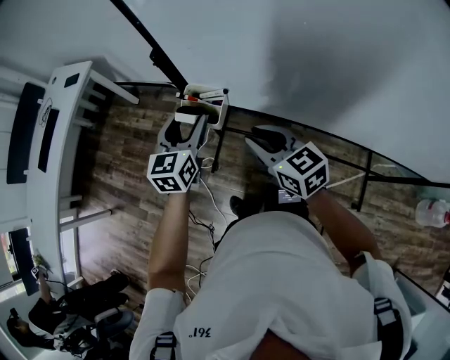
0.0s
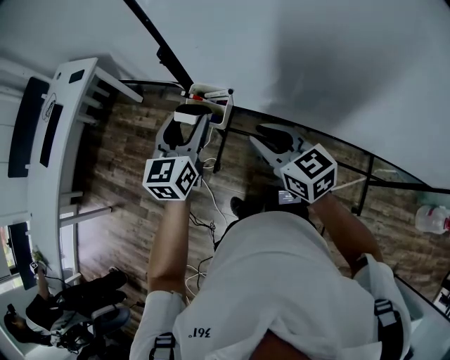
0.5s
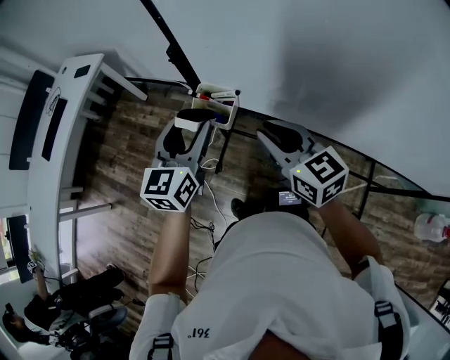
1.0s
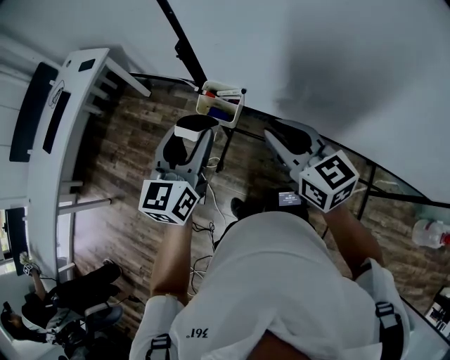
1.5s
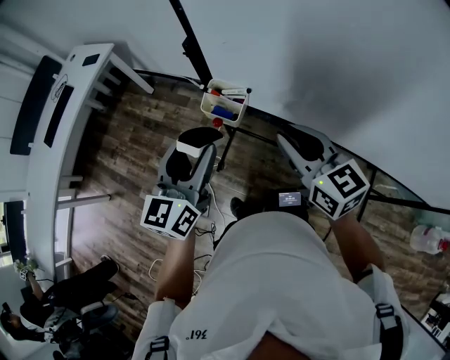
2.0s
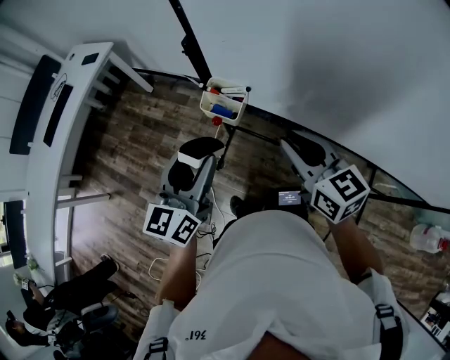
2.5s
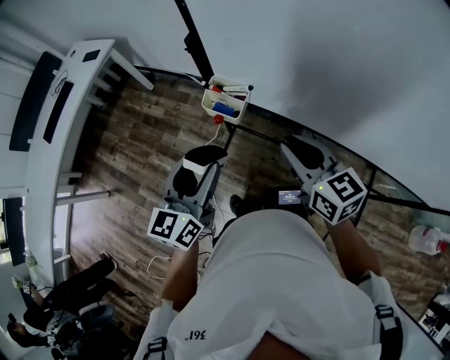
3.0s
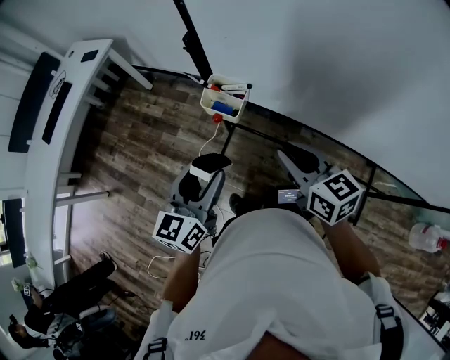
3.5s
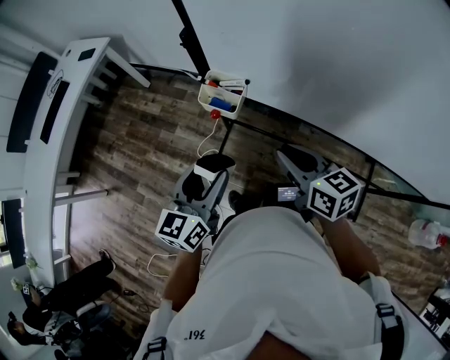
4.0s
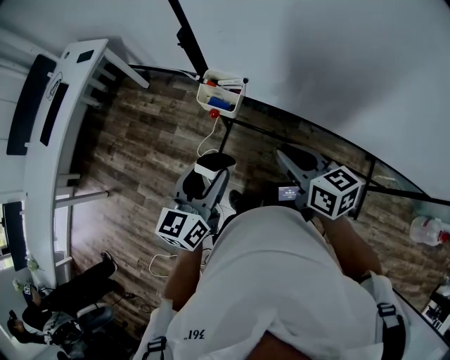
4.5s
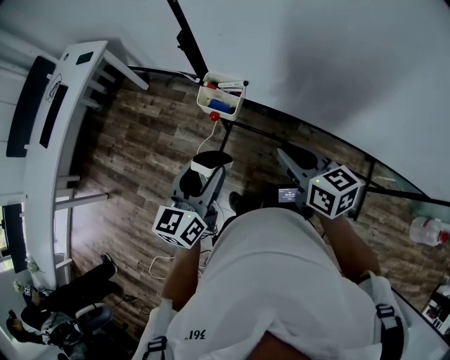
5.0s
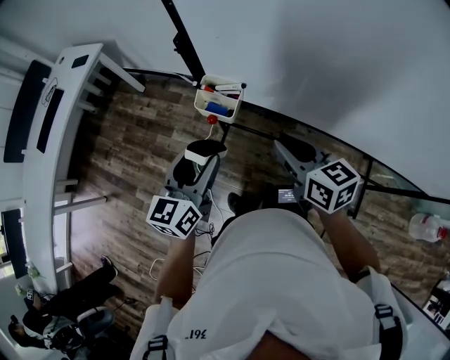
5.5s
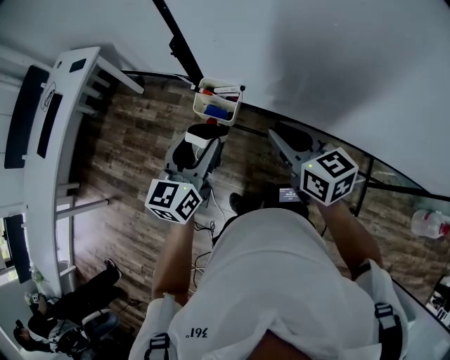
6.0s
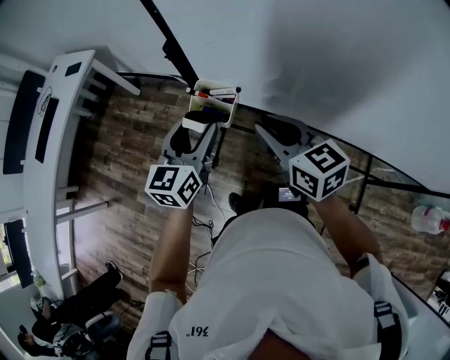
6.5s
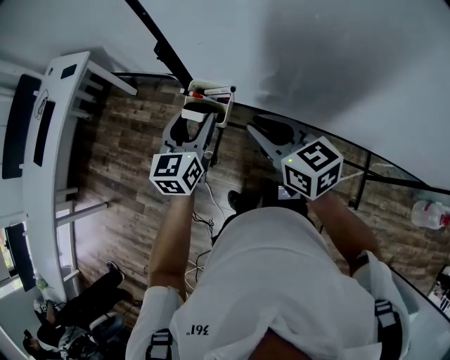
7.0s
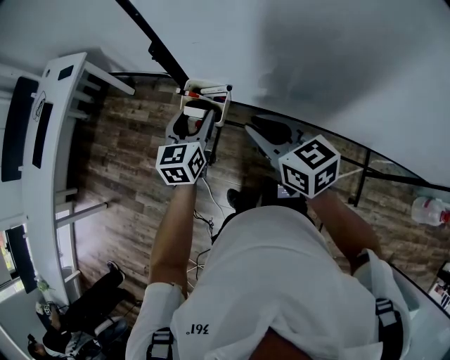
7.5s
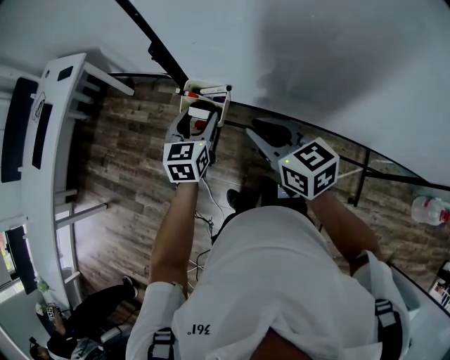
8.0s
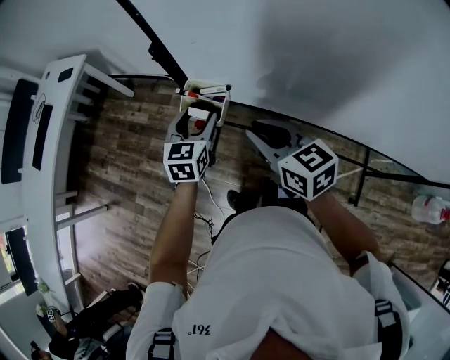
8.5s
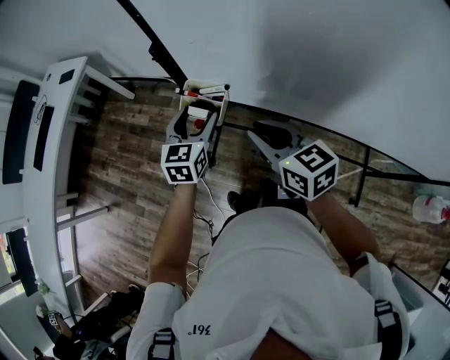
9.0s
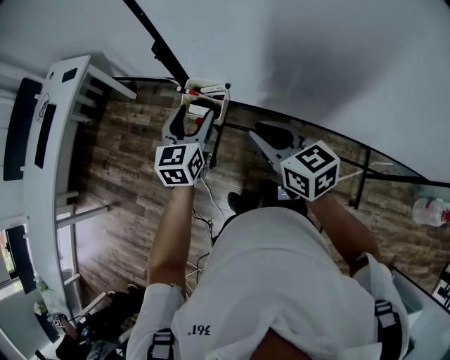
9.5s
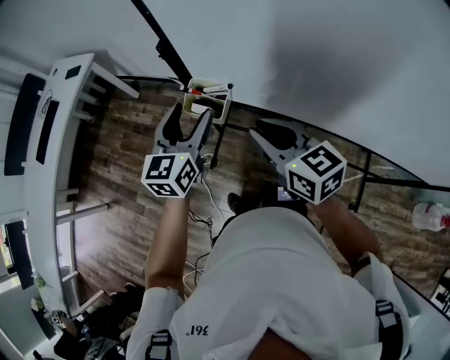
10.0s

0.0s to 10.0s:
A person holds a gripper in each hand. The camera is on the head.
0.0s to 2.0s: The left gripper heads backward and upward, covering approximately 15 cm. Meanwhile the right gripper moves upward, approximately 10 cm.
2.0s to 4.0s: The right gripper heads downward, covering about 5 cm. Meanwhile the left gripper heads downward and backward, covering roughly 10 cm.
4.0s to 6.0s: The left gripper travels forward by approximately 10 cm. The right gripper heads forward, covering about 5 cm.
6.0s to 8.0s: The left gripper is displaced downward and forward by some 15 cm.
8.0s to 10.0s: The left gripper travels upward by roughly 10 cm.

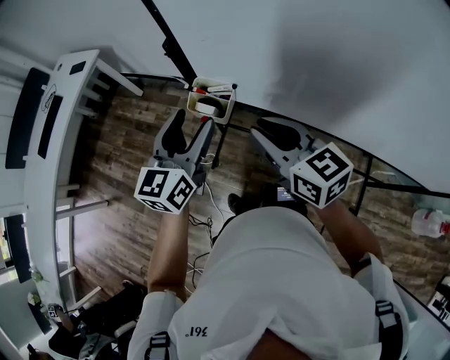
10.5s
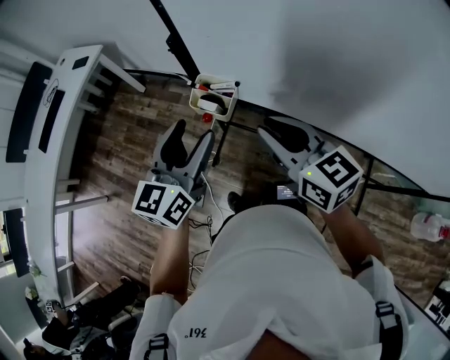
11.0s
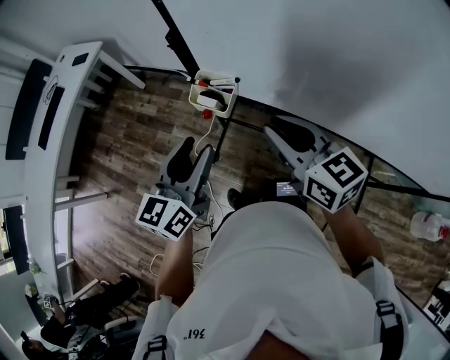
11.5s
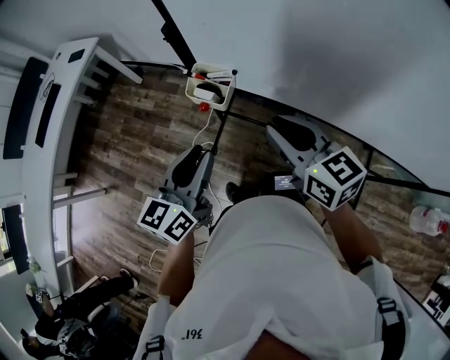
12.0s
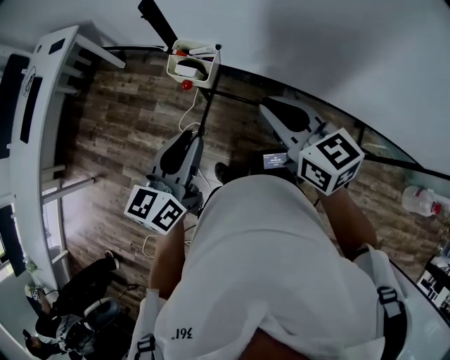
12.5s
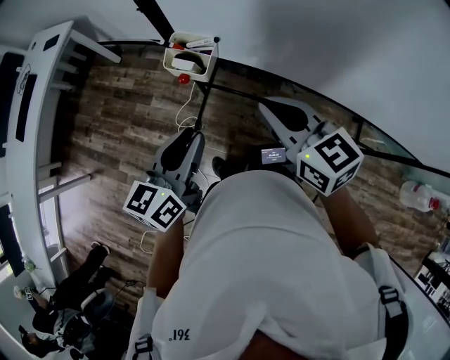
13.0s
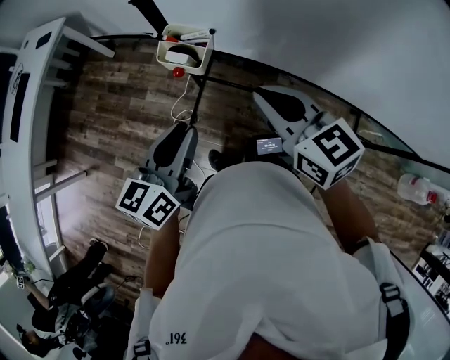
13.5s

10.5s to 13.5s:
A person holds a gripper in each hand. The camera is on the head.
10.5s to 12.0s: The left gripper moves backward, some 10 cm, and closes.
12.0s to 13.5s: The grippers stay close to where they were, moving slightly.

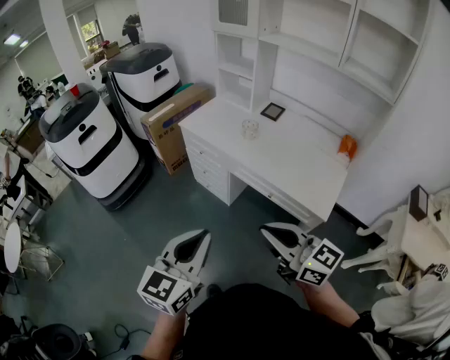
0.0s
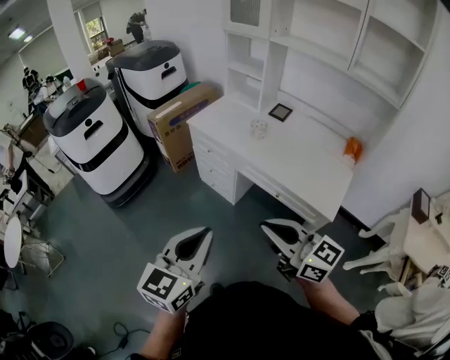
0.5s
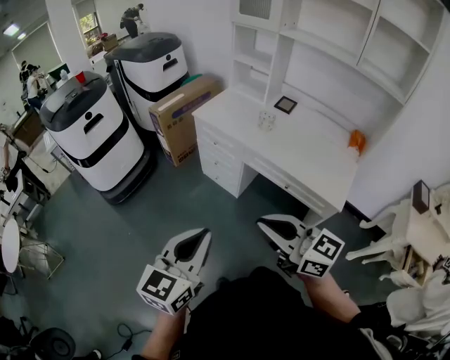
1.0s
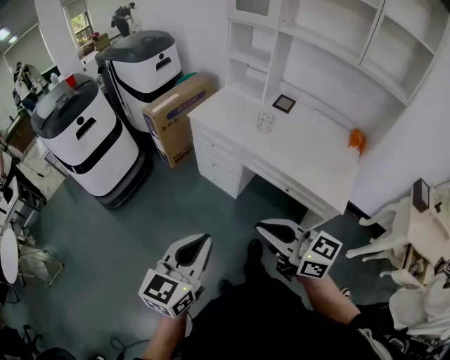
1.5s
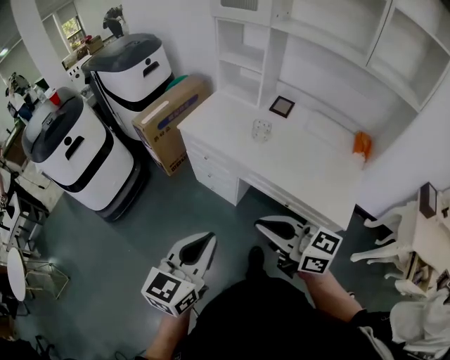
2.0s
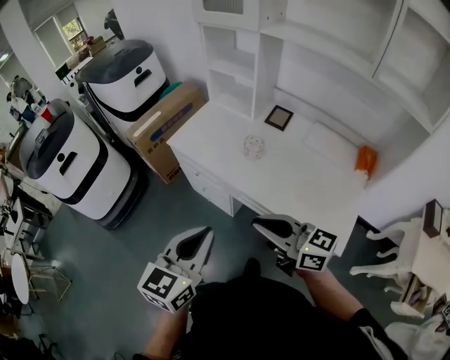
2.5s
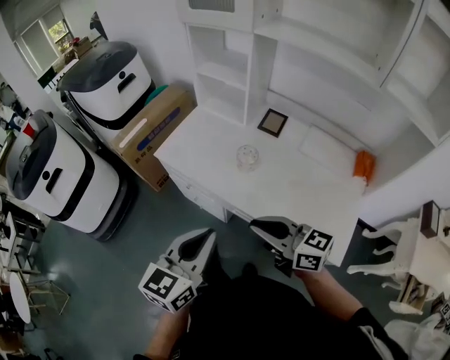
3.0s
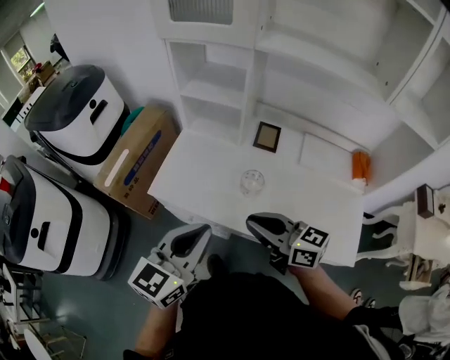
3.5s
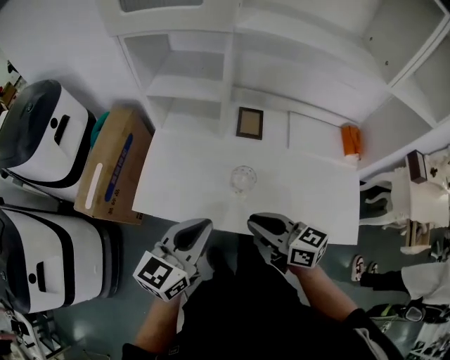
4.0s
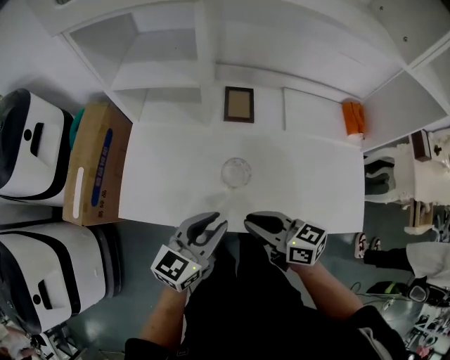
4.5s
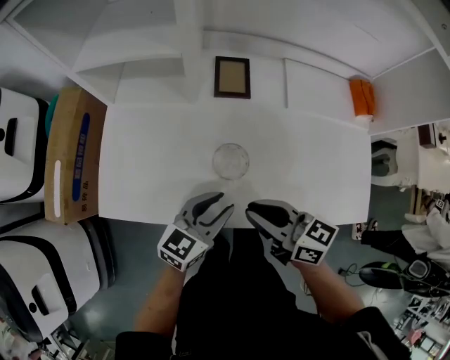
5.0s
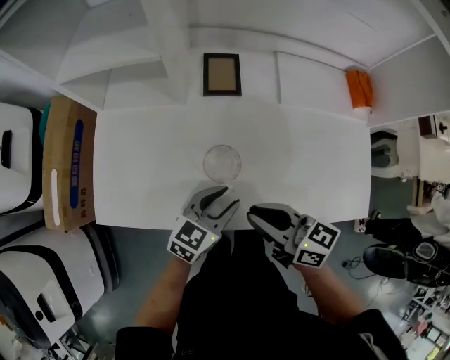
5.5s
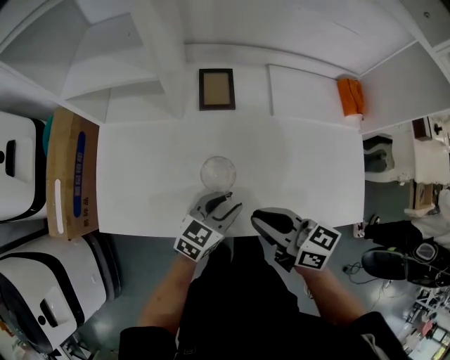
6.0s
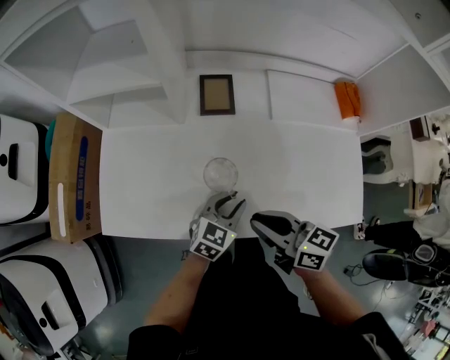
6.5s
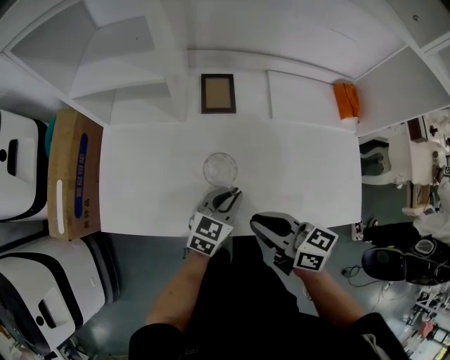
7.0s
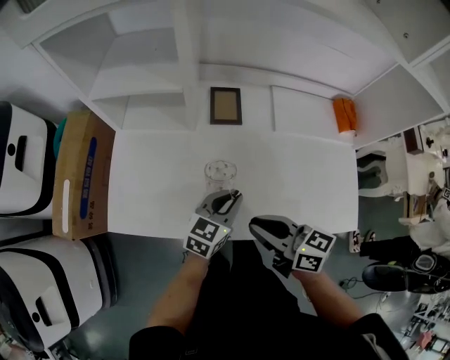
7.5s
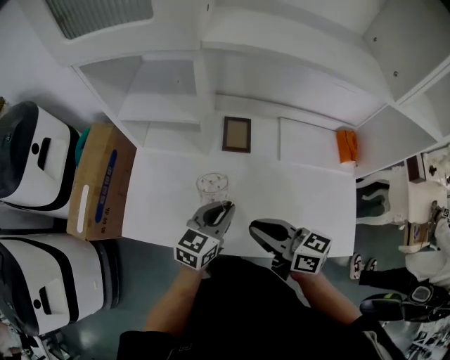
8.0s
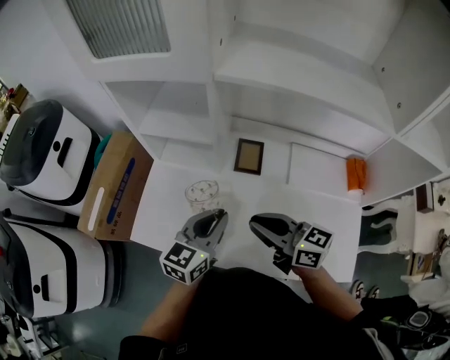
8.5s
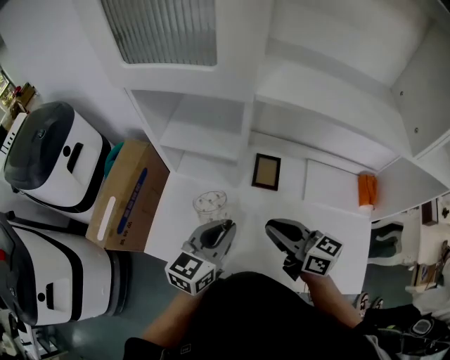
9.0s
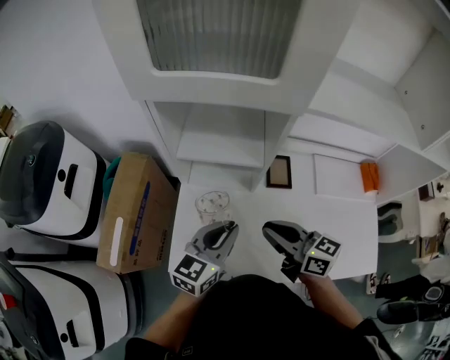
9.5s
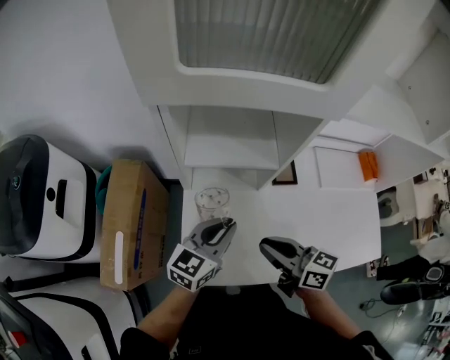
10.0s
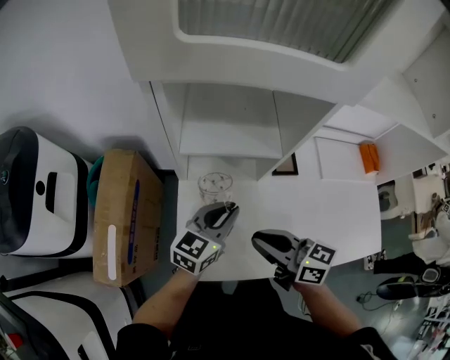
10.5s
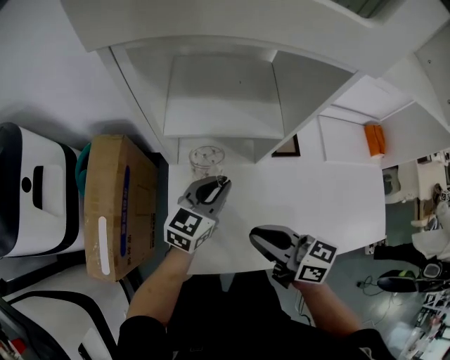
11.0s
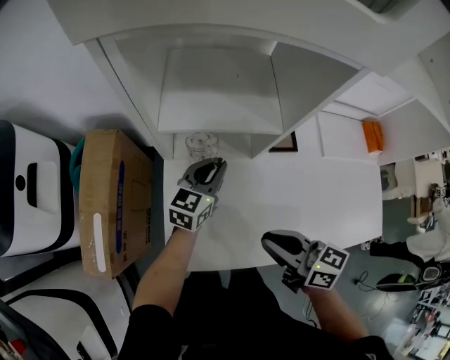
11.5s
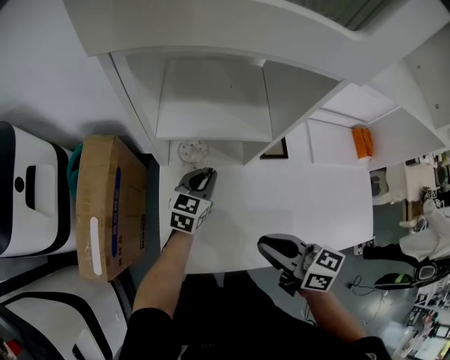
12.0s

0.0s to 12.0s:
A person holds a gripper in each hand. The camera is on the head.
0.0s to 2.0s: The right gripper travels forward and to the left by approximately 15 cm. Meanwhile the left gripper moves forward, some 15 cm.
2.0s to 4.0s: The left gripper changes place by some 40 cm, and turns by roughly 30 degrees. Meanwhile the right gripper ends up roughly 40 cm from where it was, and changes its angle by some 30 degrees.
4.0s to 6.0s: The left gripper shifts roughly 30 cm downward and to the right, changes its angle by approximately 30 degrees, and opens; the right gripper heads downward and to the right, covering about 10 cm.
6.0s to 8.0s: The right gripper shifts about 10 cm upward. Meanwhile the left gripper is displaced upward, forward and to the left by approximately 15 cm, and closes.
8.0s to 10.0s: Both grippers move to the left and forward, about 25 cm.
10.0s to 12.0s: The left gripper goes approximately 20 cm downward and forward.

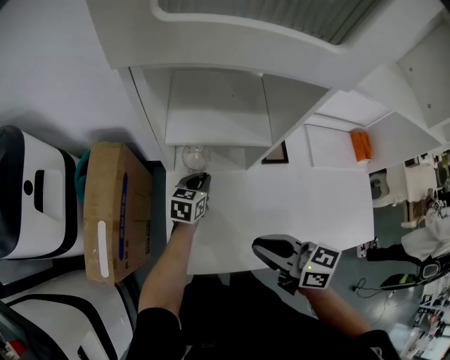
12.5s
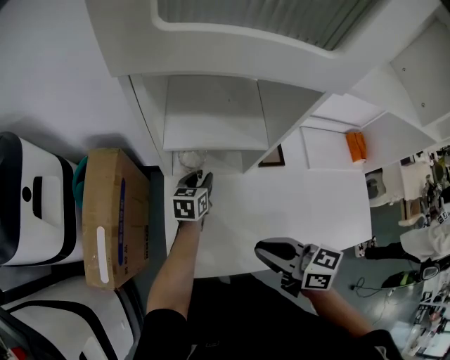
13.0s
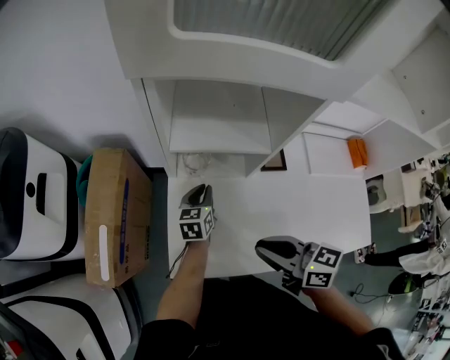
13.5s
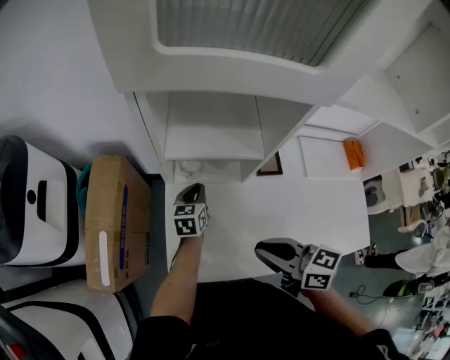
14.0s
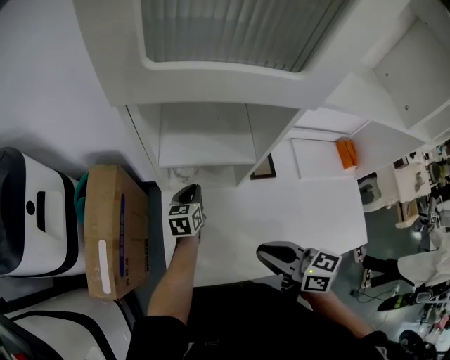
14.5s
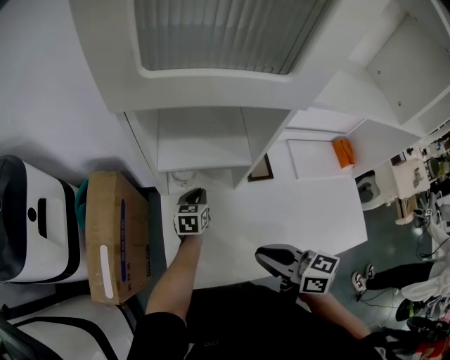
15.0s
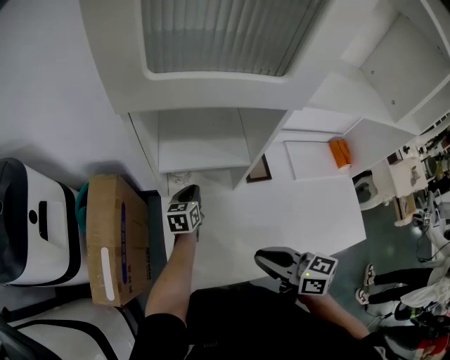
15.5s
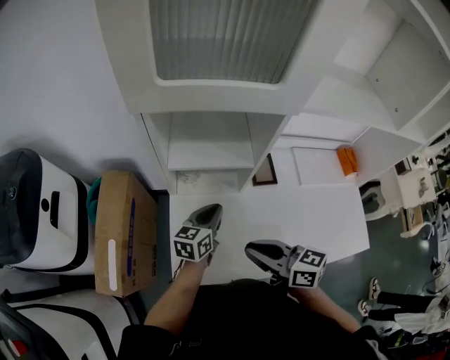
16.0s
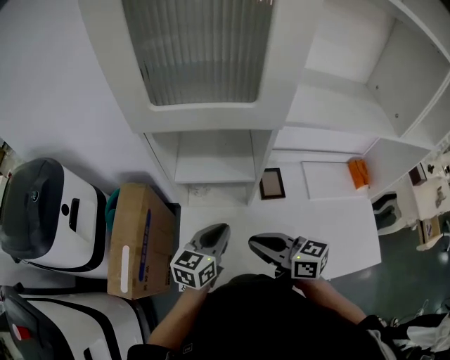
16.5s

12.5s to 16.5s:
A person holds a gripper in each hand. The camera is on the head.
12.5s to 14.5s: The grippers stay close to where they were, moving slightly.
14.5s to 16.5s: The left gripper is displaced upward and backward by roughly 20 cm.
